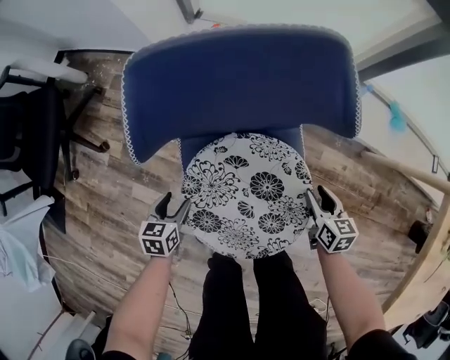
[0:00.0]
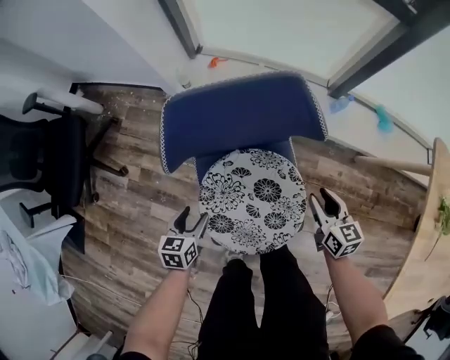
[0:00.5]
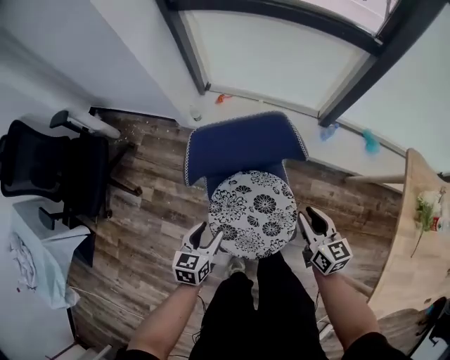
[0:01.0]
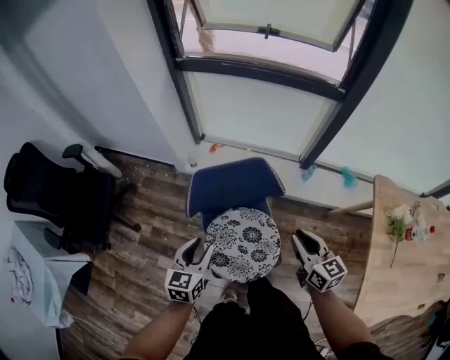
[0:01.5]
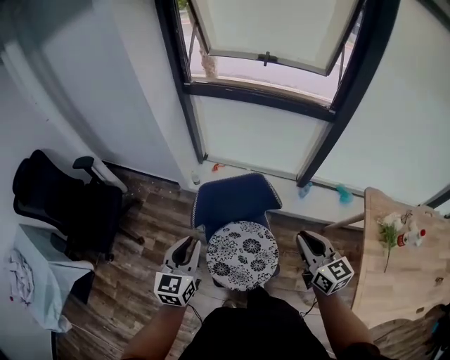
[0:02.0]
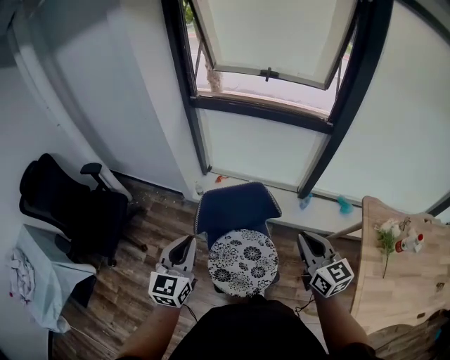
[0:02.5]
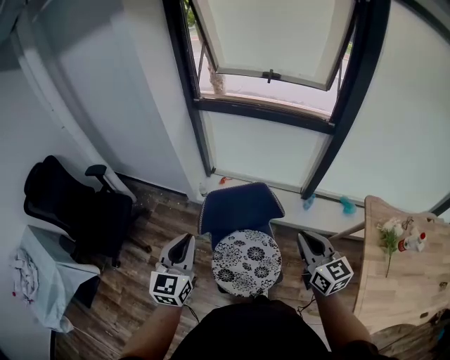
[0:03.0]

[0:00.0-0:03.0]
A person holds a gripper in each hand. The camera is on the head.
0:00.0 to 0:01.5: The grippers both shift upward by about 40 cm. The right gripper changes its angle by approximately 30 degrees, and closes; the left gripper turns by roughly 30 degrees, and closes its fingers.
0:01.5 to 0:03.0: The grippers both shift upward by some 15 cm. The left gripper rotates roughly 20 degrees, and closes up.

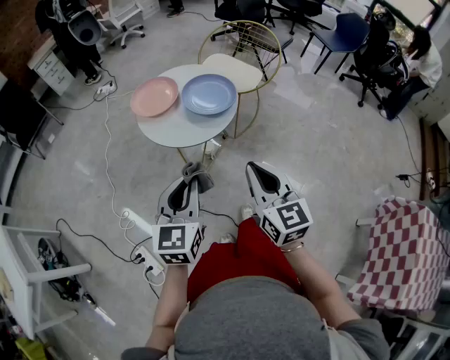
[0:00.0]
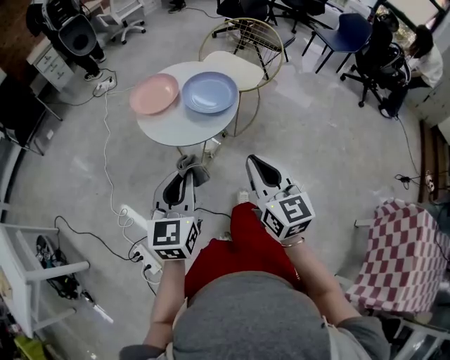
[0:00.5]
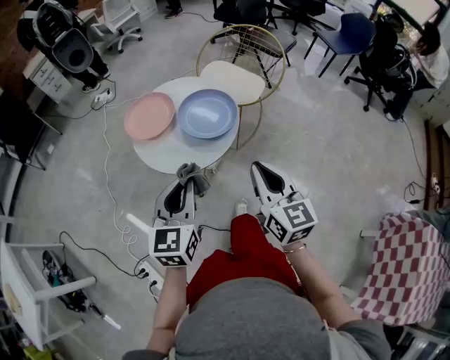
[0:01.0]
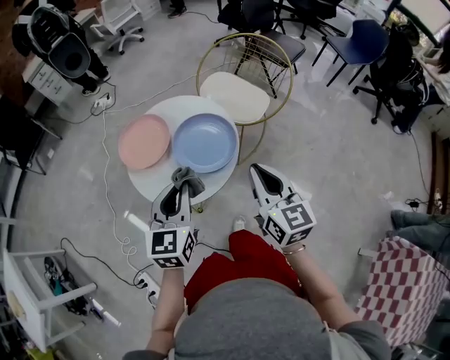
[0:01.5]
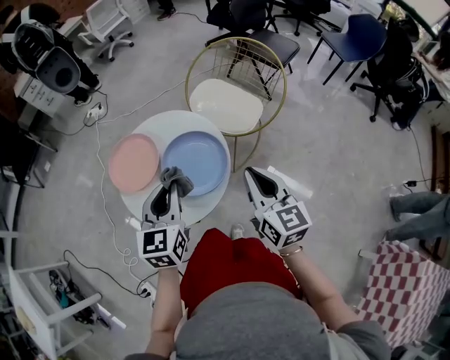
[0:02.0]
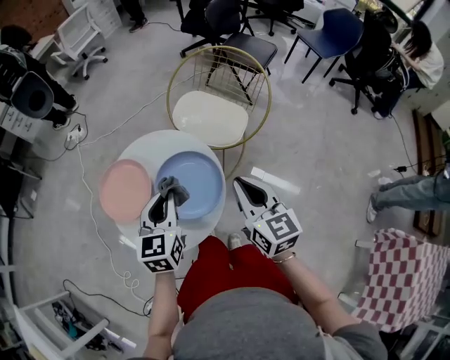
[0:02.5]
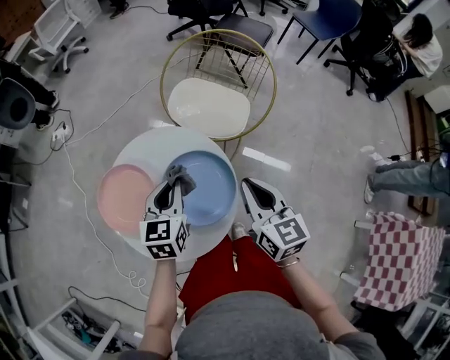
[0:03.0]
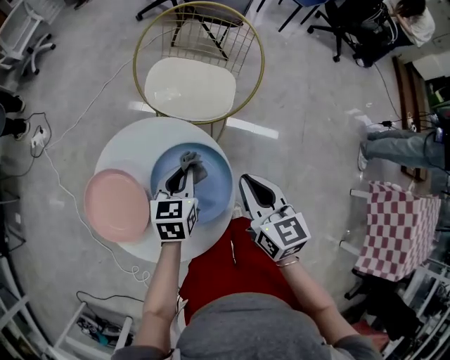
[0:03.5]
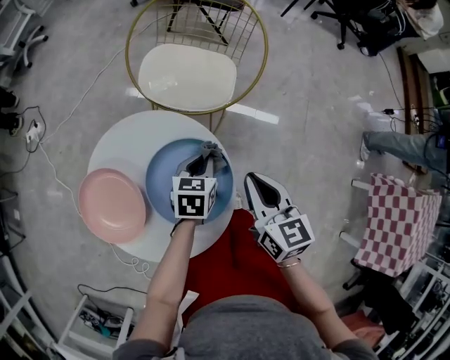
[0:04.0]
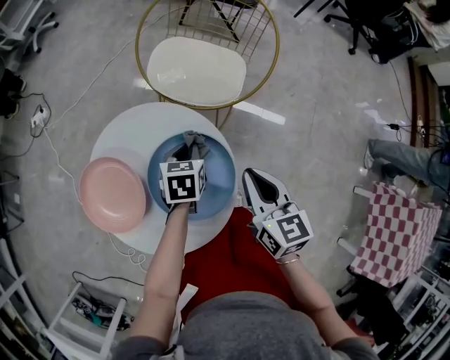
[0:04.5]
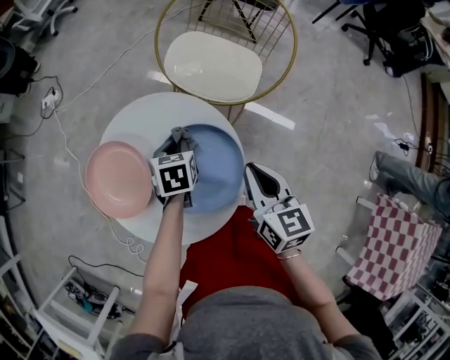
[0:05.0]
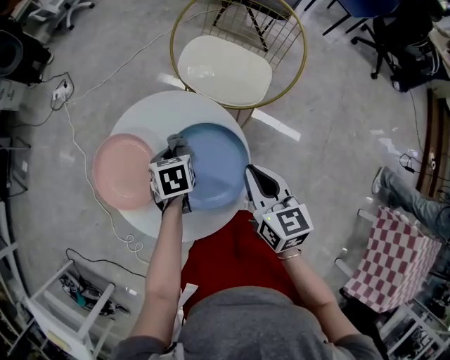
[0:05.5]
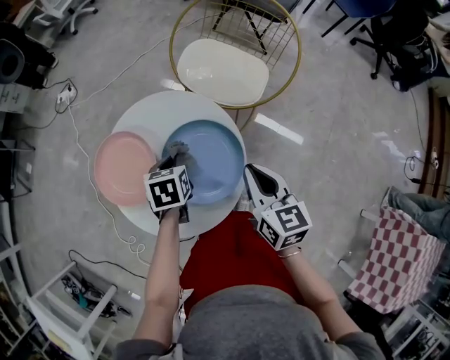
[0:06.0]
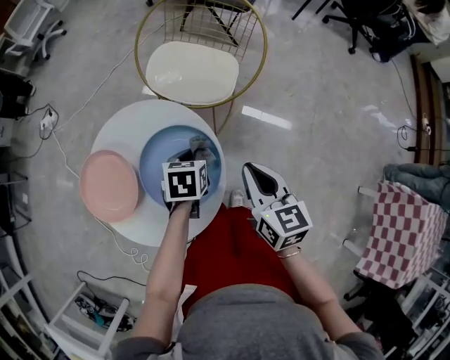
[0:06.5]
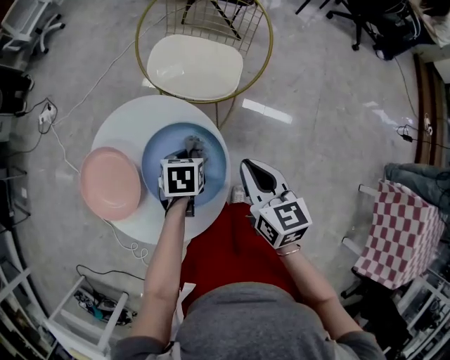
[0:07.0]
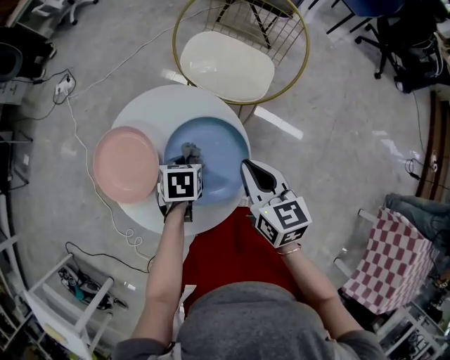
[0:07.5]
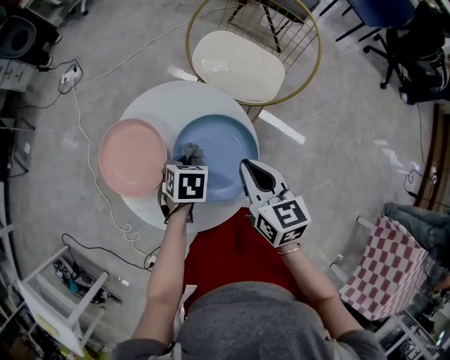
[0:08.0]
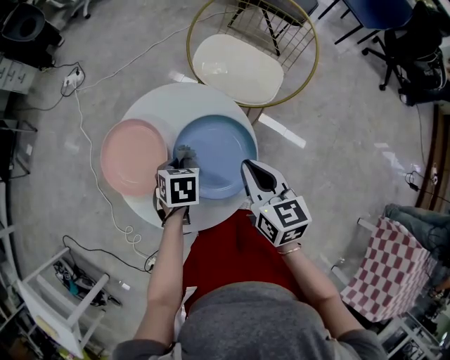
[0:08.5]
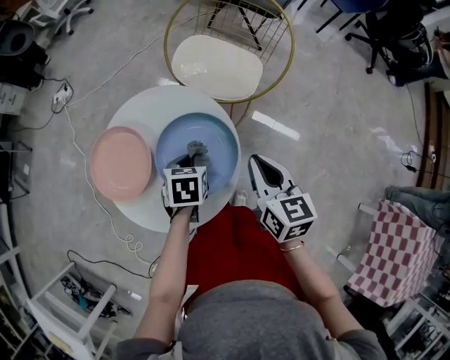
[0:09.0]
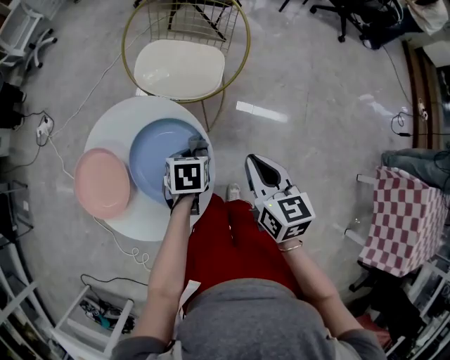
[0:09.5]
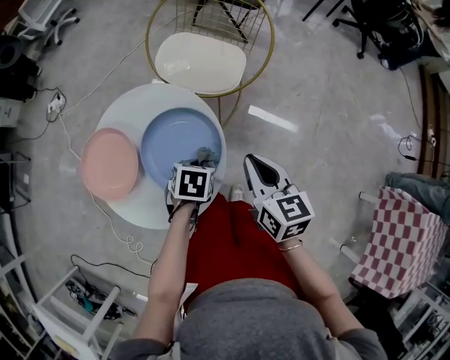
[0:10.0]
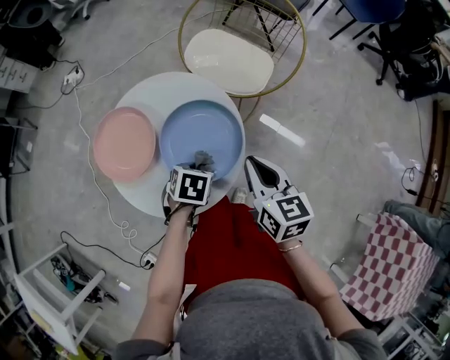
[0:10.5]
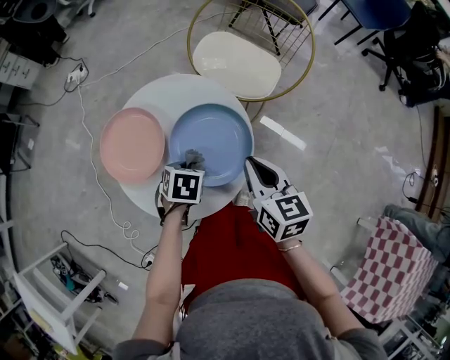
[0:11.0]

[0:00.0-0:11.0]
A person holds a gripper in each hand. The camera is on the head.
0:00.0 to 0:02.0: Both grippers travel together forward, some 35 cm.
0:02.0 to 0:03.5: The left gripper moves downward, about 15 cm, and rotates roughly 40 degrees. The right gripper moves roughly 10 cm, and changes its angle by roughly 20 degrees.
0:03.5 to 0:05.5: The left gripper shifts by roughly 10 cm, and swivels approximately 30 degrees.
0:05.5 to 0:07.5: The right gripper reaches some 5 cm to the right, then returns. The left gripper reaches approximately 15 cm to the right, then returns.
0:07.5 to 0:09.0: The grippers move only a little.
0:09.0 to 0:11.0: The right gripper moves some 10 cm to the right and comes back, while the left gripper moves backward, roughly 5 cm, and travels to the right and back again, roughly 10 cm each way.

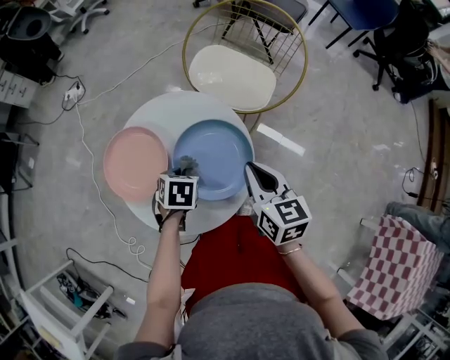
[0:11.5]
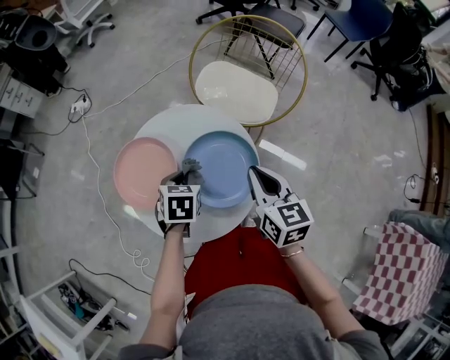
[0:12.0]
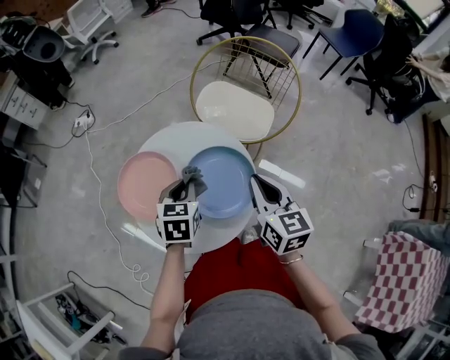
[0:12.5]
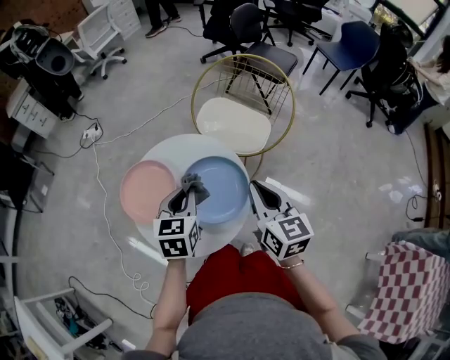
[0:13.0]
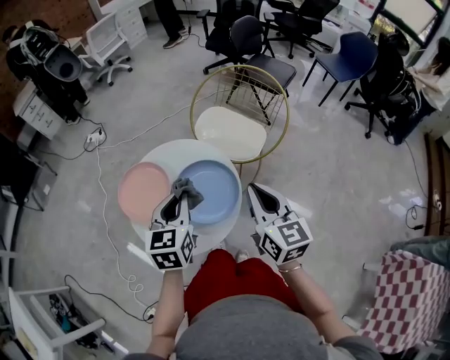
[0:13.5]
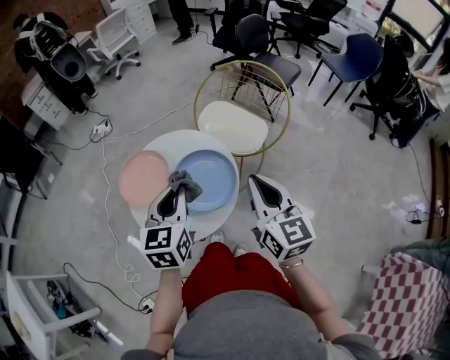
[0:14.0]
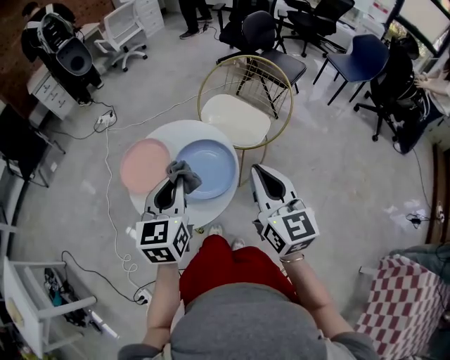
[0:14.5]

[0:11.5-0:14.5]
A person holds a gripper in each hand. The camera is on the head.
0:11.5 to 0:13.0: The right gripper travels upward by some 10 cm. Meanwhile the left gripper goes roughly 15 cm upward, and points its fingers approximately 40 degrees further upward.
0:13.0 to 0:14.5: The two grippers go roughly 15 cm upward and backward.

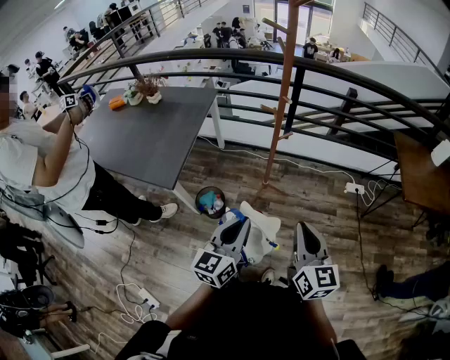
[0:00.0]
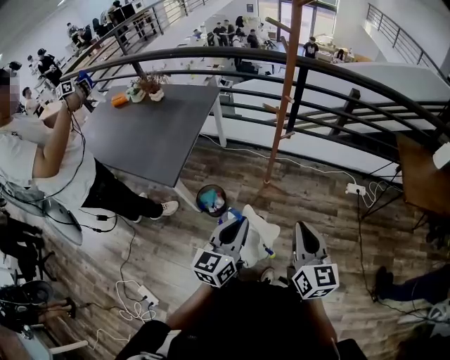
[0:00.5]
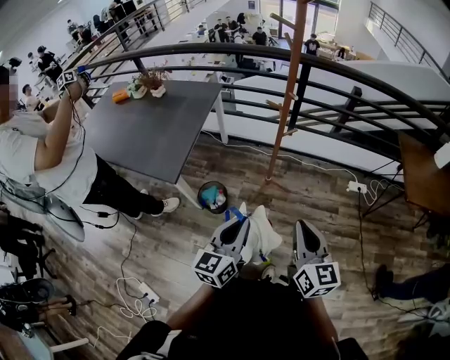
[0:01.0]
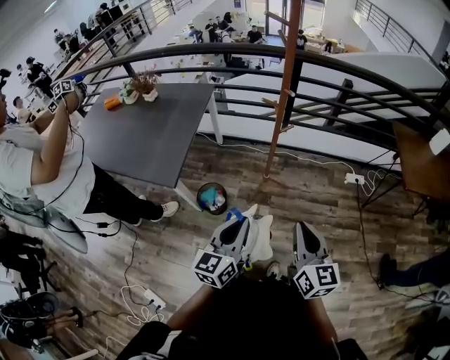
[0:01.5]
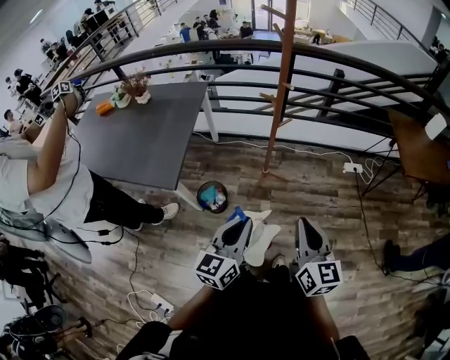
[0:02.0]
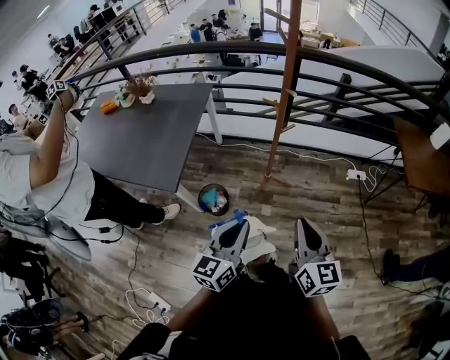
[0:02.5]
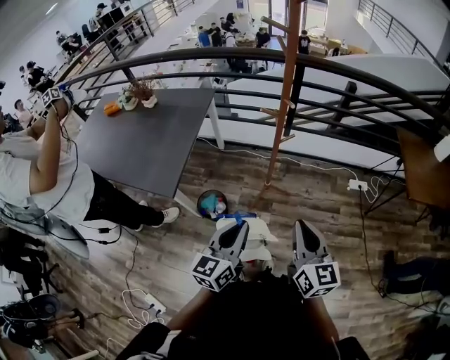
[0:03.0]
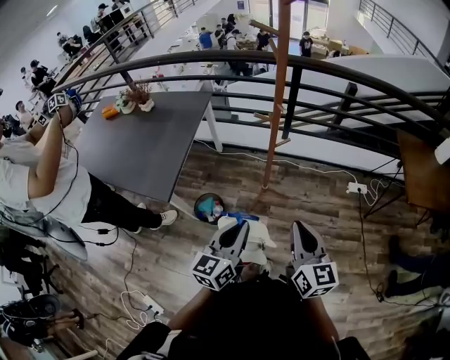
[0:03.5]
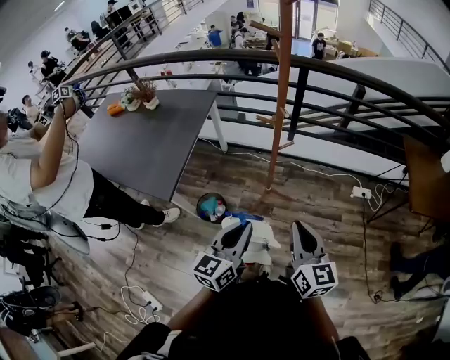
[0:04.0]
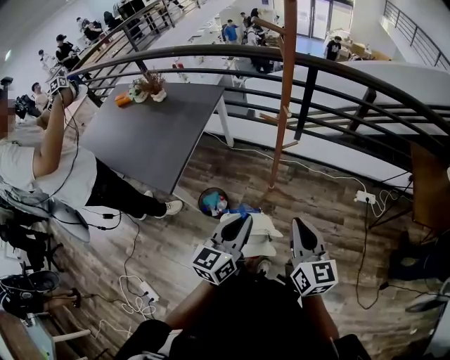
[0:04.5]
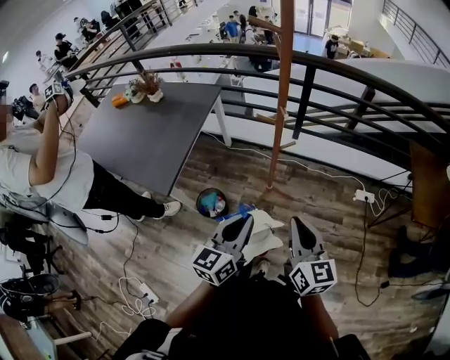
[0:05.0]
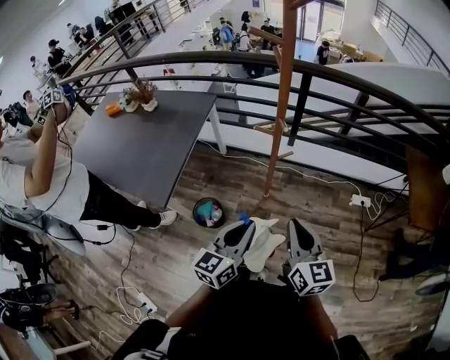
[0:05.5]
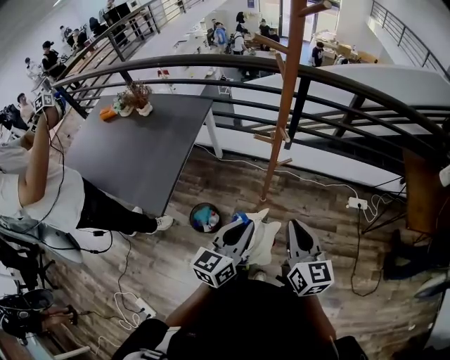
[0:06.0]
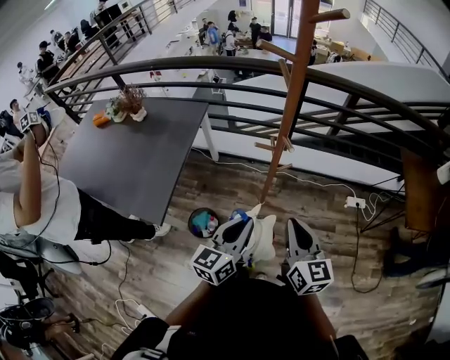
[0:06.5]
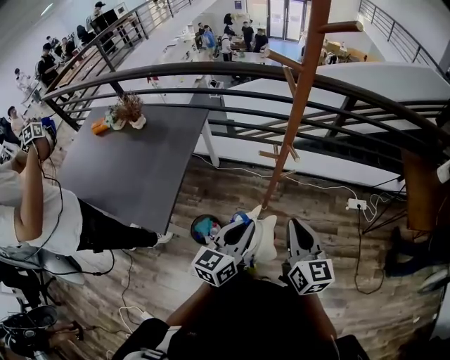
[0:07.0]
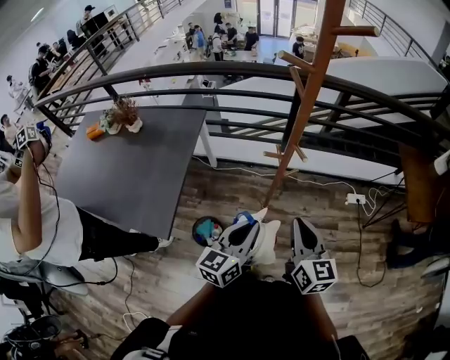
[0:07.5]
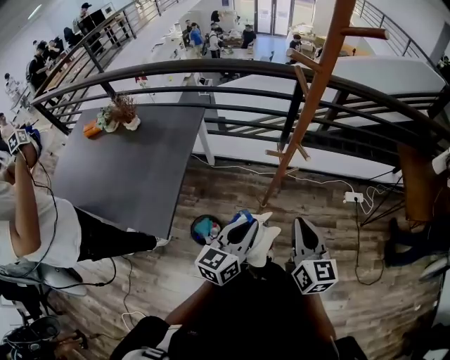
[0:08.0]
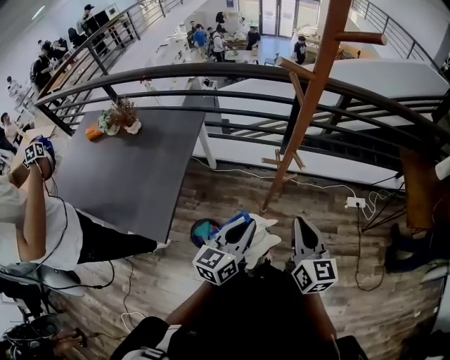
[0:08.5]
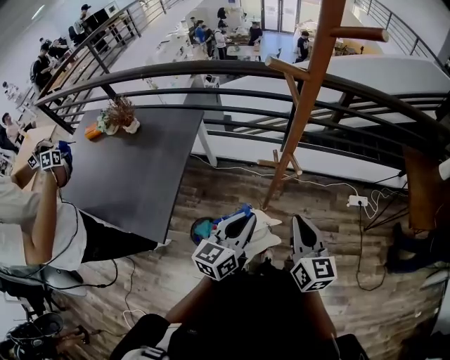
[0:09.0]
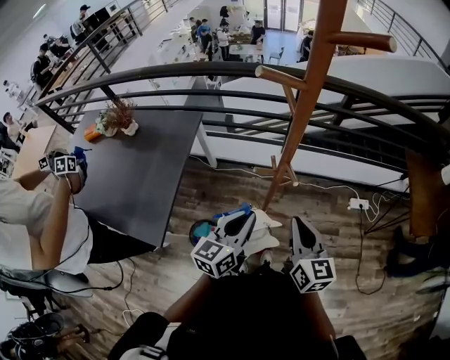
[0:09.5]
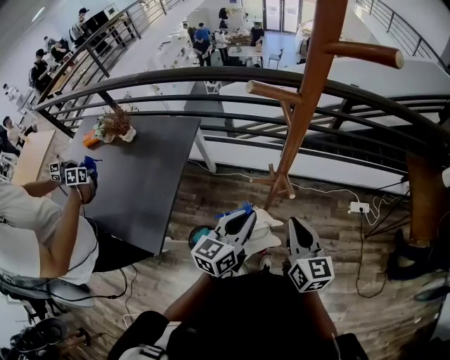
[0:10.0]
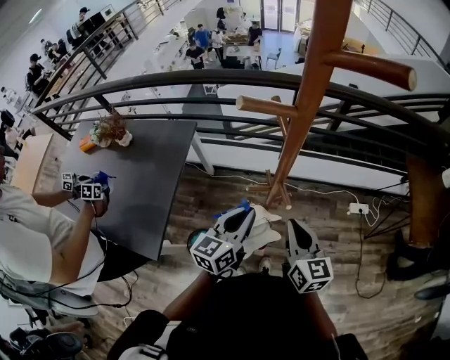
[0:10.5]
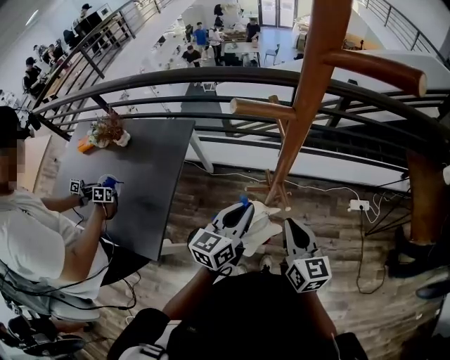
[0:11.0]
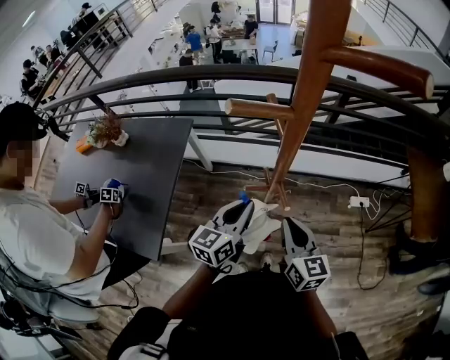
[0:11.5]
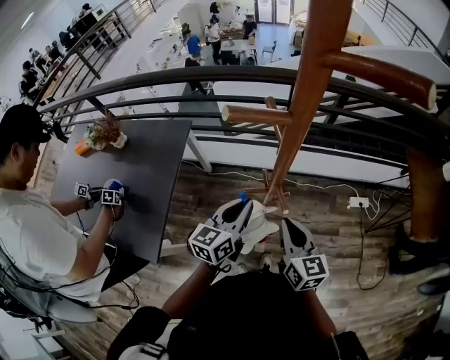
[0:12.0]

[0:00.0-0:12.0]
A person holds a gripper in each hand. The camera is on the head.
0:00.0 to 0:02.0: The right gripper changes place by some 5 cm.
0:02.0 to 0:04.0: Both grippers move forward and to the right, roughly 10 cm.
0:04.0 to 0:06.0: The two grippers go about 10 cm forward.
0:06.0 to 0:08.0: The left gripper travels to the left and forward by approximately 10 cm; the right gripper goes about 5 cm to the left.
0:08.0 to 0:10.0: The grippers both shift forward by about 10 cm.
0:10.0 to 0:12.0: The left gripper heads forward, covering approximately 5 cm.
